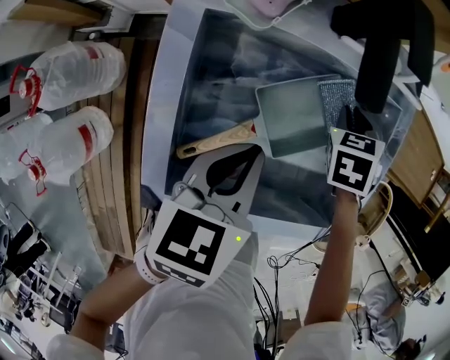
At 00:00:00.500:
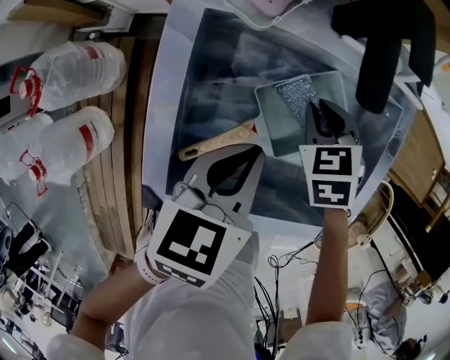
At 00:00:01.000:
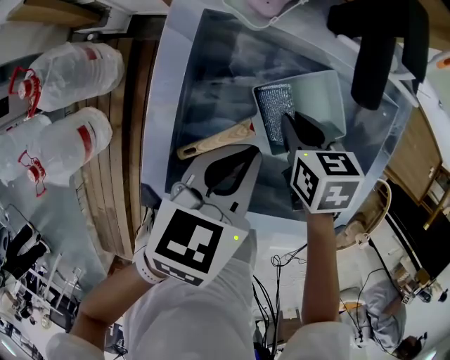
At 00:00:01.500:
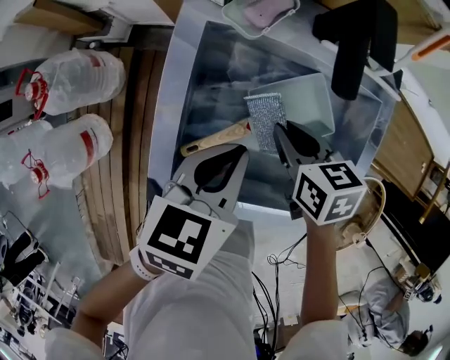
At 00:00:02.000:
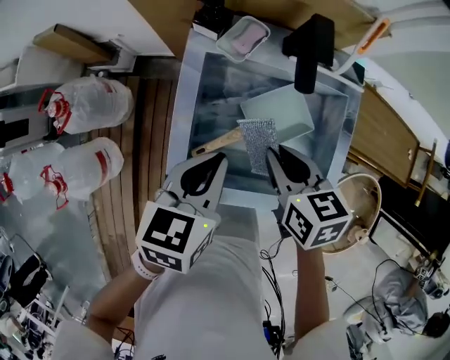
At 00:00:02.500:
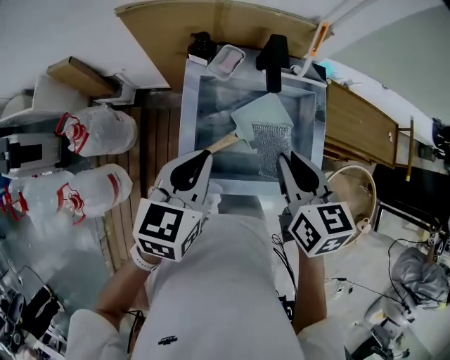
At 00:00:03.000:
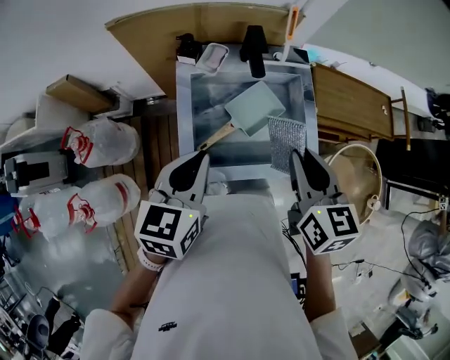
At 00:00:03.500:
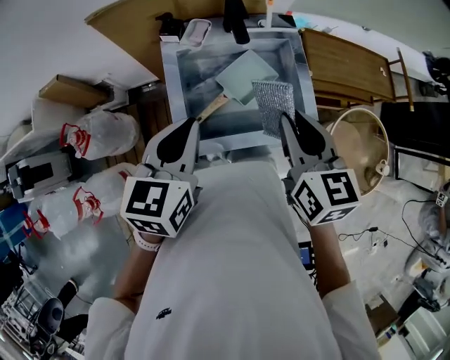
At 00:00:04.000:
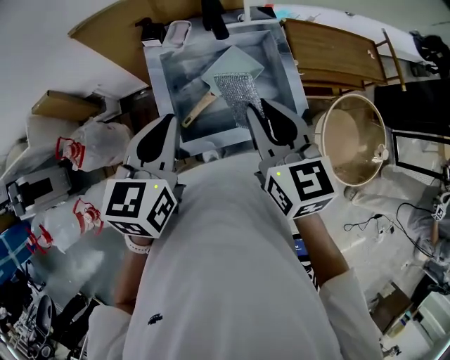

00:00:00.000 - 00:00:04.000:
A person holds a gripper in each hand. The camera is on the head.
00:00:00.000 - 00:00:02.000: The right gripper changes place by about 25 cm, and turns by about 40 degrees, while the left gripper shifts about 10 cm upward.
00:00:02.000 - 00:00:04.000: Both grippers move upward and backward, some 20 cm. The left gripper rotates roughly 20 degrees; the right gripper rotates about 40 degrees.

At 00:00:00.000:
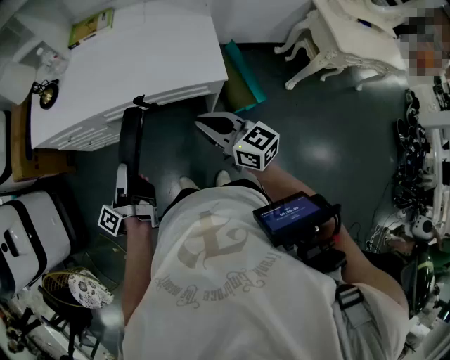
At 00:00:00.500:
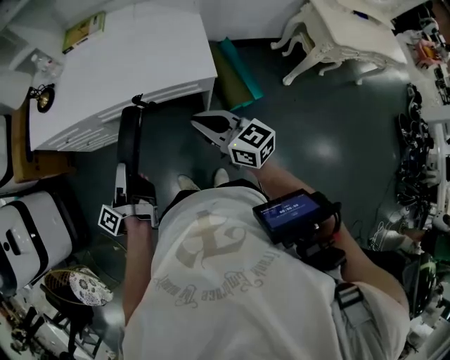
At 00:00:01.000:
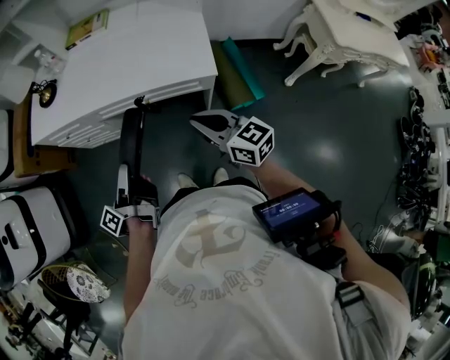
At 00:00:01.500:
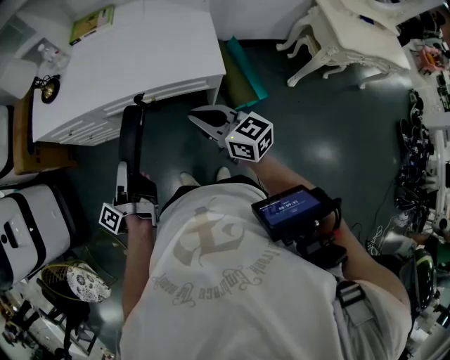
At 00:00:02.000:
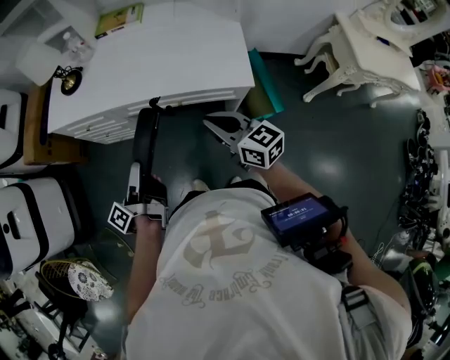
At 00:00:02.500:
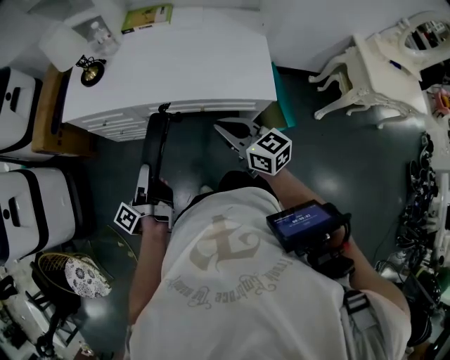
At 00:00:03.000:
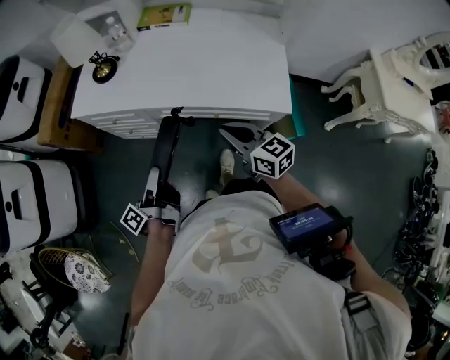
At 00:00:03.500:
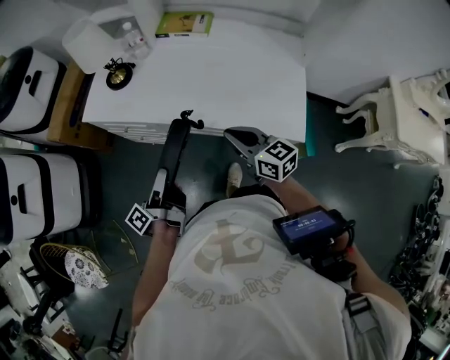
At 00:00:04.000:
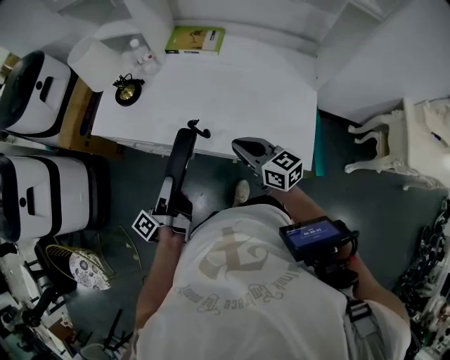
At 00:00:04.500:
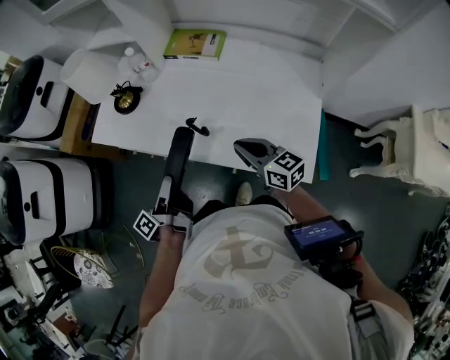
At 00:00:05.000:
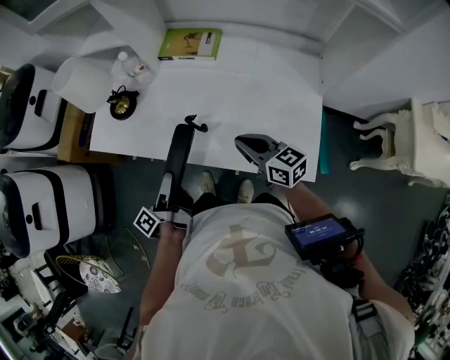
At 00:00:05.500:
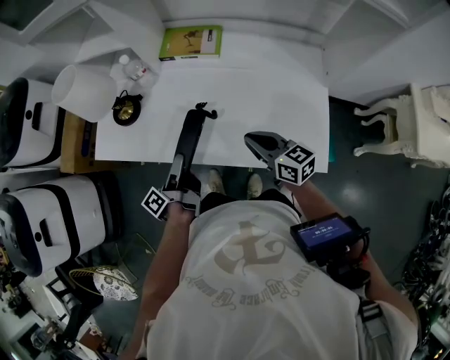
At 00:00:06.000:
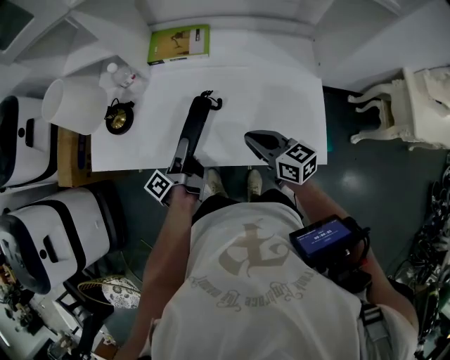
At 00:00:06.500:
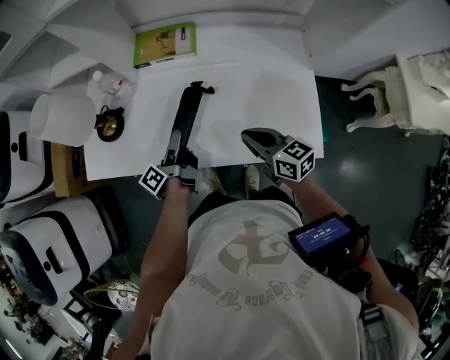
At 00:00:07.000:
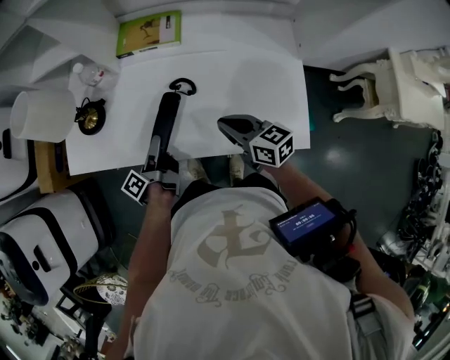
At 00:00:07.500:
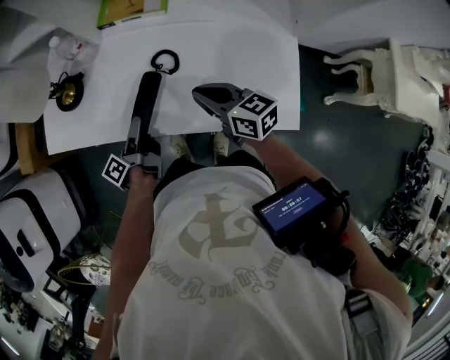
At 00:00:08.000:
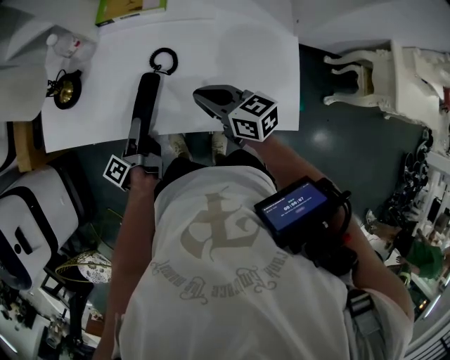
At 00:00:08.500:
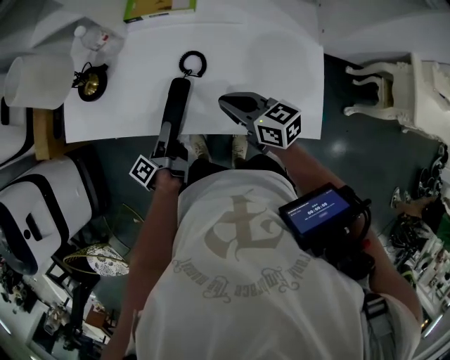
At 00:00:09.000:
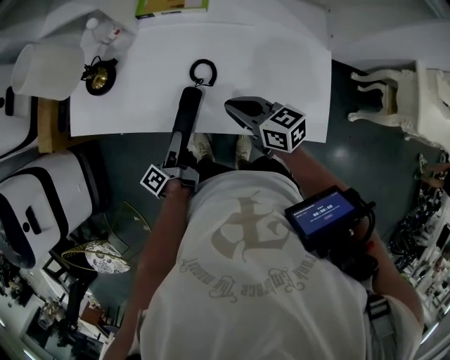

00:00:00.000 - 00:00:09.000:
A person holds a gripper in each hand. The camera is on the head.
00:00:00.000 - 00:00:02.000: The right gripper moves approximately 5 cm.
00:00:02.000 - 00:00:04.500: The right gripper changes place by about 25 cm.
00:00:04.500 - 00:00:07.000: The right gripper moves about 5 cm.

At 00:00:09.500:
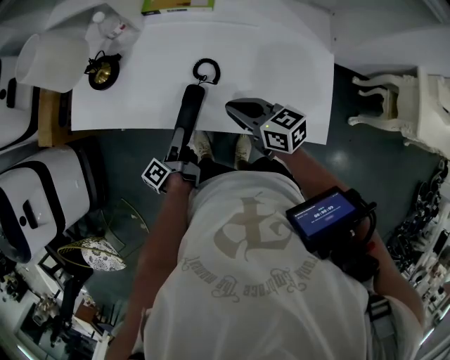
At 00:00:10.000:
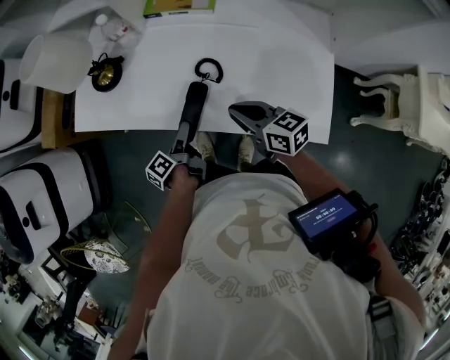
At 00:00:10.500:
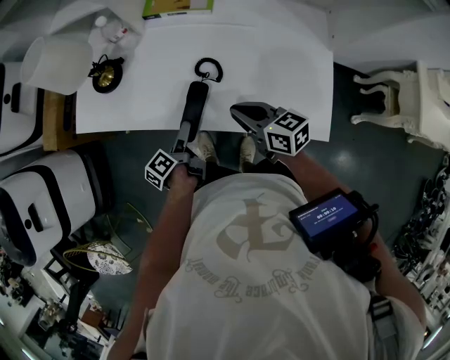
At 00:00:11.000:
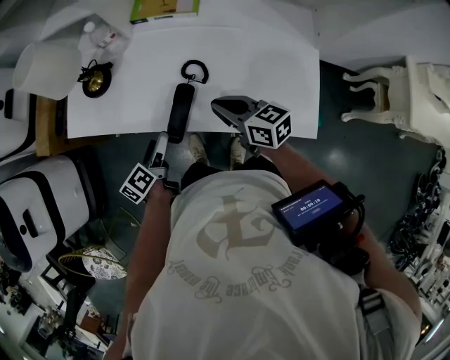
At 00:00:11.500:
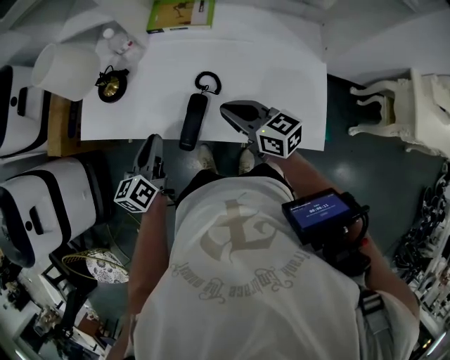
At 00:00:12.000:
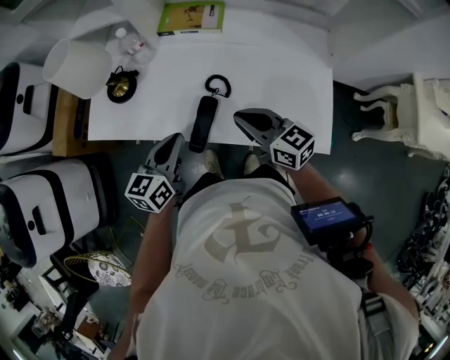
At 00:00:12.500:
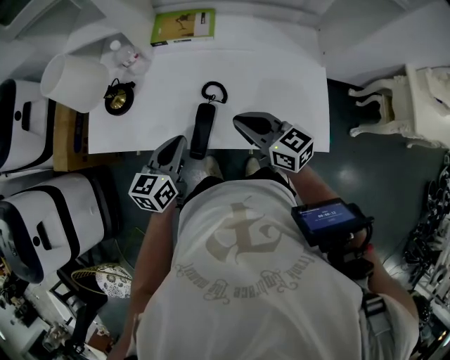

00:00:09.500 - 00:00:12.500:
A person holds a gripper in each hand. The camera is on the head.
00:00:11.000 - 00:00:12.500: The right gripper travels upward by approximately 5 cm.

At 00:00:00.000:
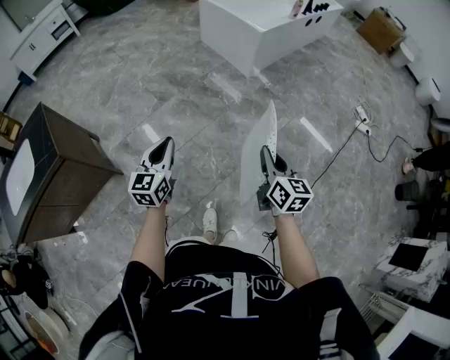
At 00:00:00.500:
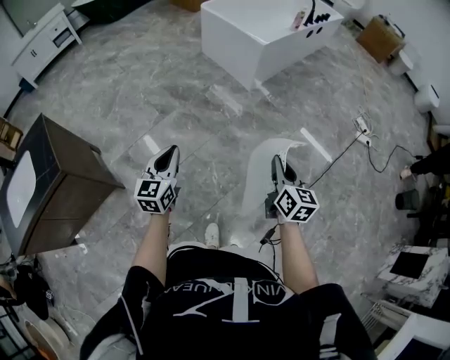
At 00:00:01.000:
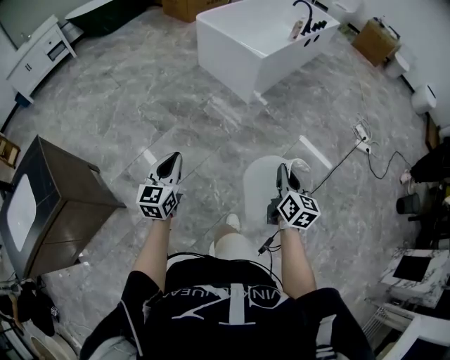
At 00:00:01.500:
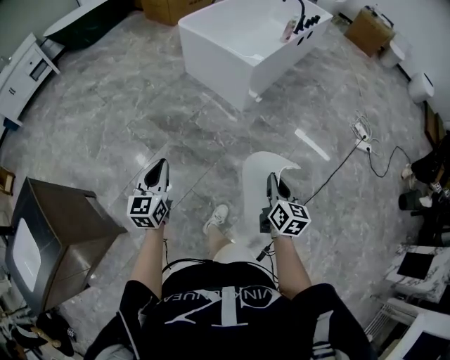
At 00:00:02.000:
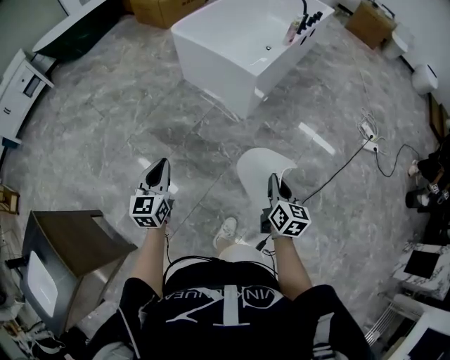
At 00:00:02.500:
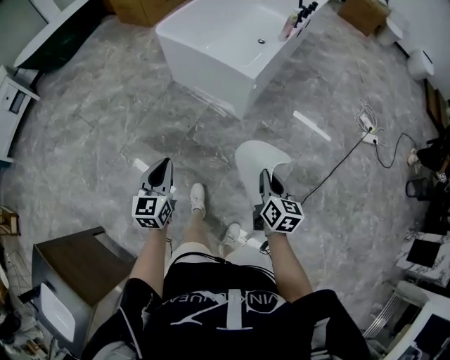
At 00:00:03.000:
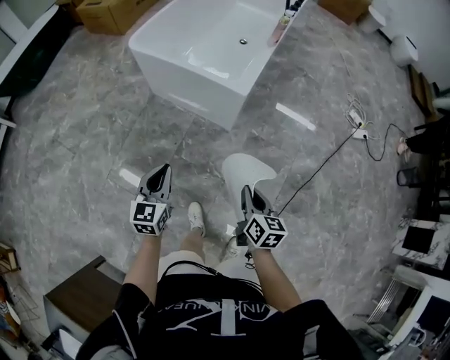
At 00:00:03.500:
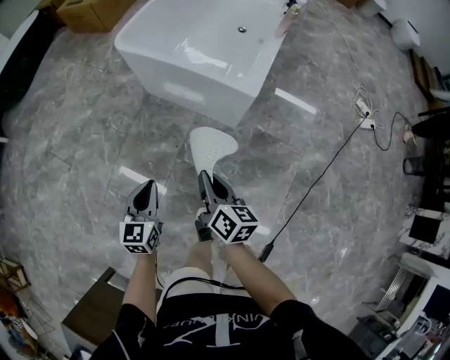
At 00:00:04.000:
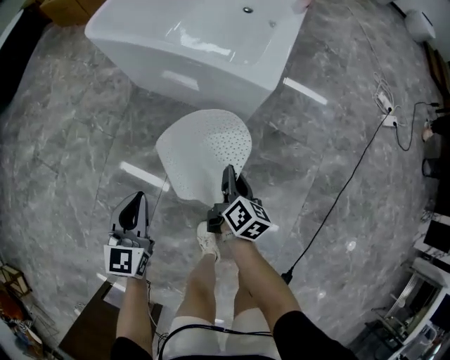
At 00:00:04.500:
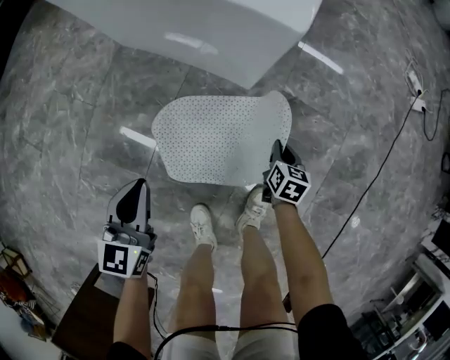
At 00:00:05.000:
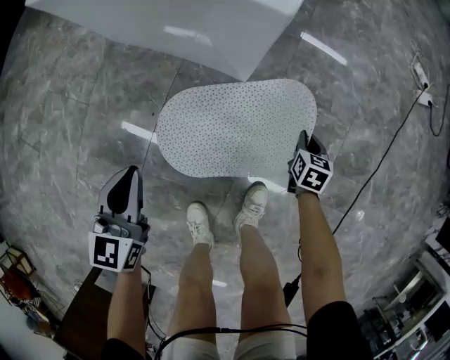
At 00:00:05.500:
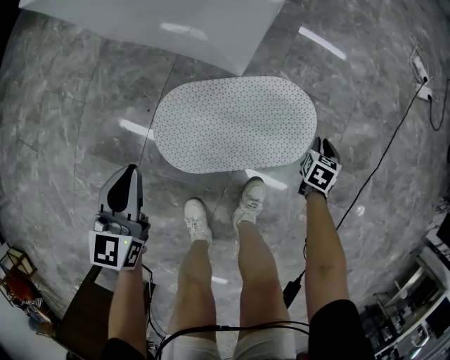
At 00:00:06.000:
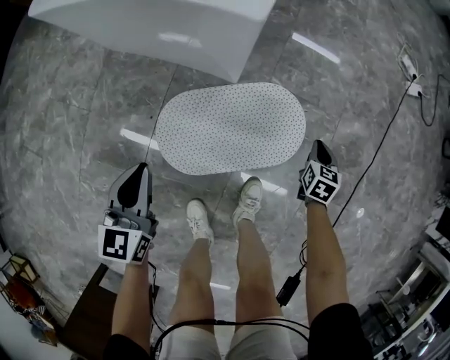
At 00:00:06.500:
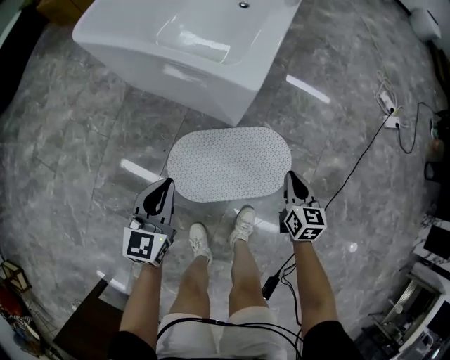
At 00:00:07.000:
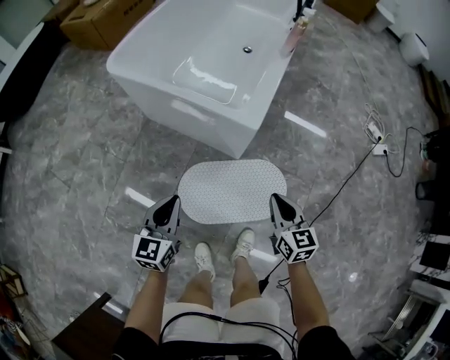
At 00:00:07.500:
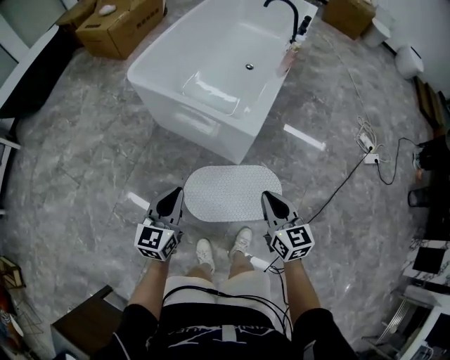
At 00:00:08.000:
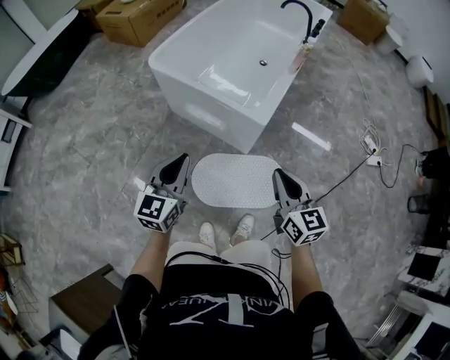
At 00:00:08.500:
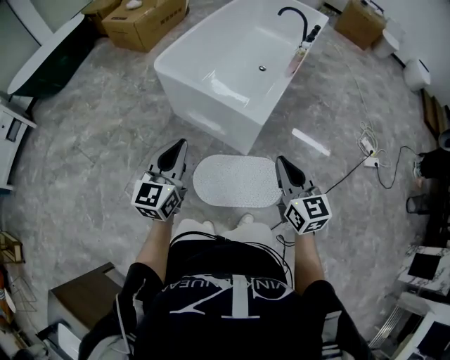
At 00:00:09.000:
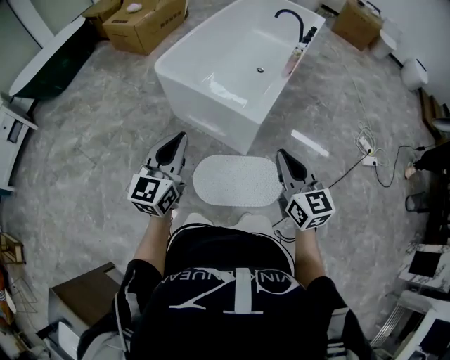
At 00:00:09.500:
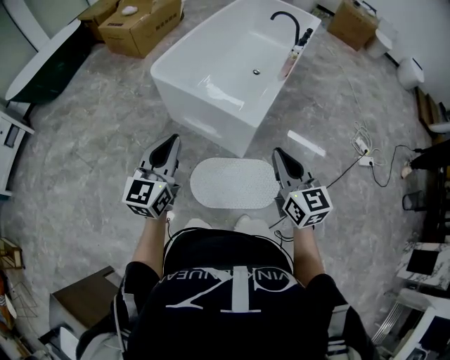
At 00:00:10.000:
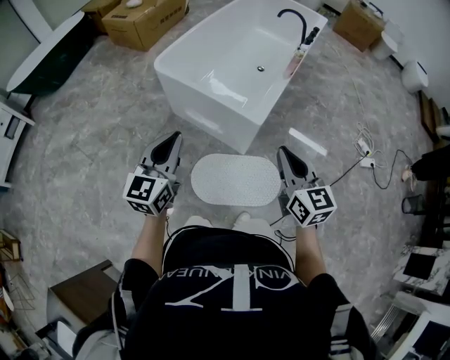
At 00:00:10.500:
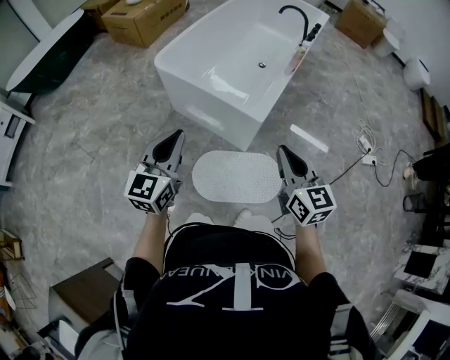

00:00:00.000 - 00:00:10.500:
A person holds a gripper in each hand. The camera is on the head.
00:00:00.000 - 00:00:02.000: Both grippers move forward, roughly 40 cm. The right gripper turns by about 20 degrees.
00:00:02.000 - 00:00:04.000: The right gripper goes some 60 cm forward, downward and to the left, and turns by about 30 degrees, while the left gripper shifts some 50 cm forward and downward.
00:00:04.000 - 00:00:06.500: The left gripper is displaced to the right and forward by some 15 cm, and reaches approximately 20 cm downward, then returns; the right gripper heads to the right, covering roughly 20 cm, and rotates roughly 40 degrees.
00:00:06.500 - 00:00:08.500: The two grippers go some 40 cm upward. The right gripper rotates roughly 30 degrees.
00:00:08.500 - 00:00:10.500: The grippers move only a little.
